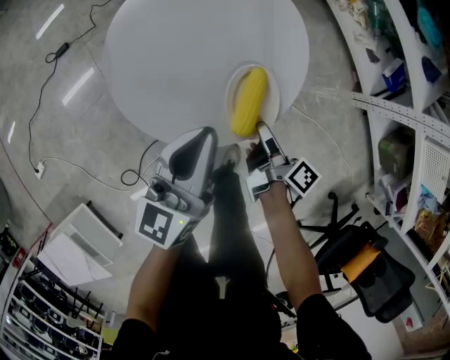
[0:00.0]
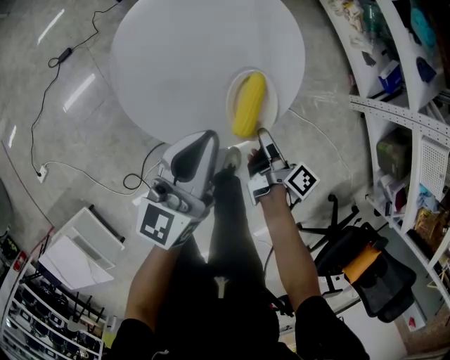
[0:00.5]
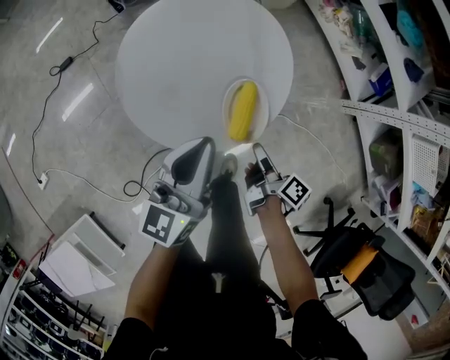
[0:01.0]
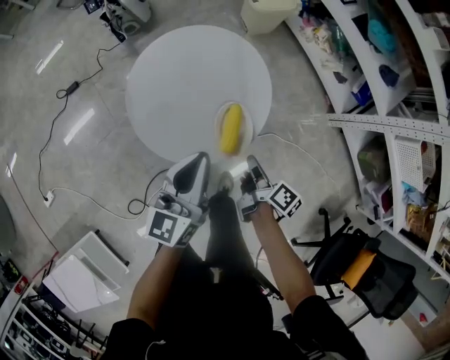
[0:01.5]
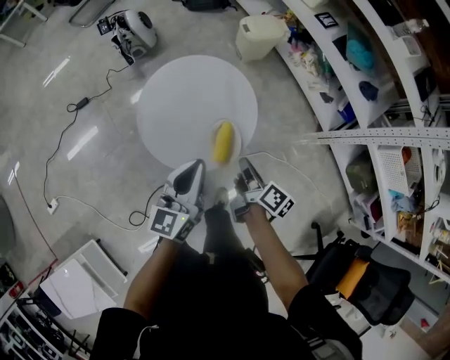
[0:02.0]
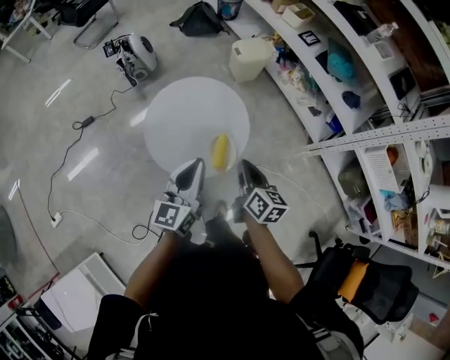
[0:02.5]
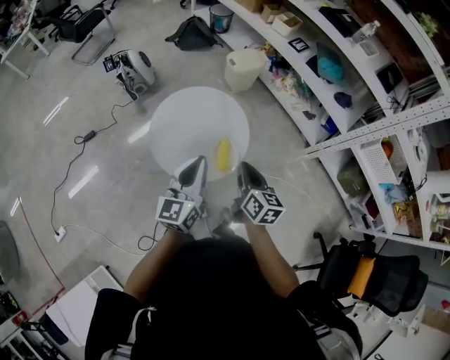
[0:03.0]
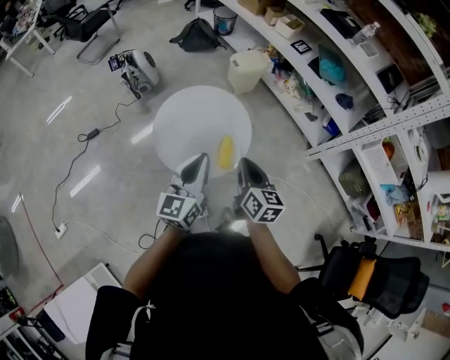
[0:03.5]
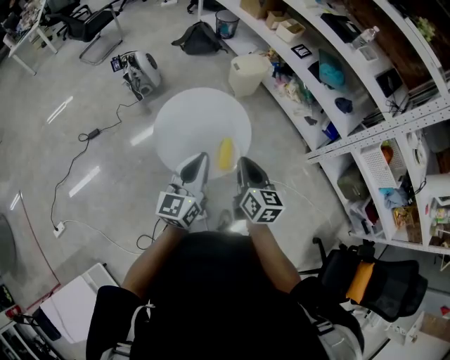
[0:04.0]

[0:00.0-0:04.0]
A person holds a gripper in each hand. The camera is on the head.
0:00.0 to 0:02.0: The left gripper shifts approximately 15 cm upward.
0:02.0 to 0:04.0: The left gripper heads upward, covering approximately 10 cm.

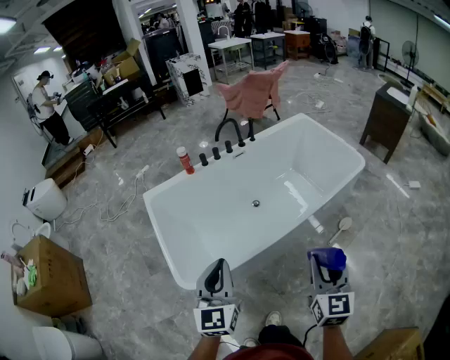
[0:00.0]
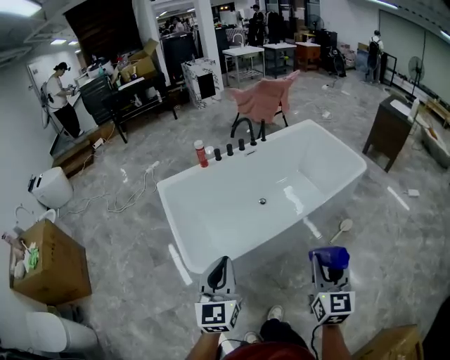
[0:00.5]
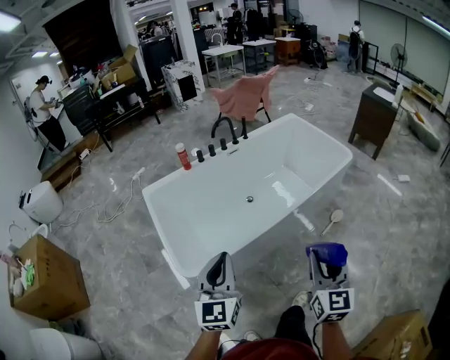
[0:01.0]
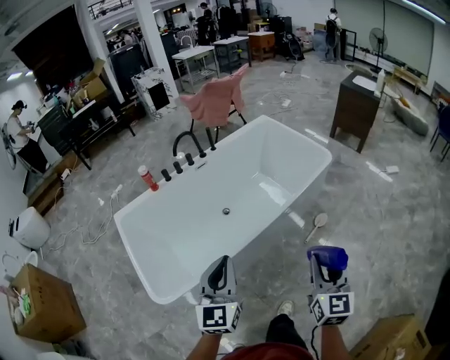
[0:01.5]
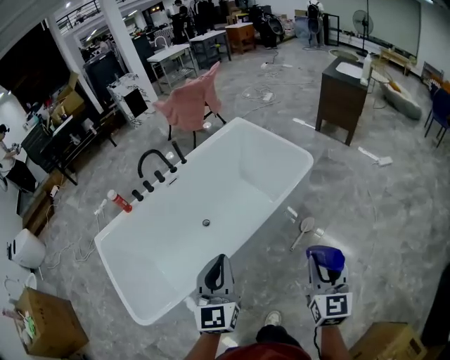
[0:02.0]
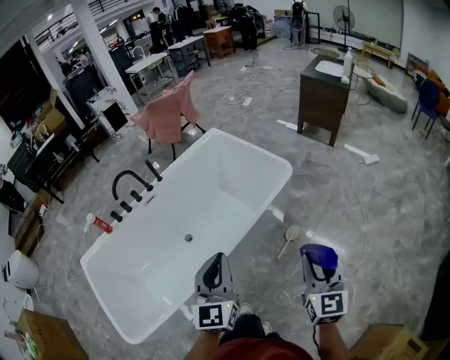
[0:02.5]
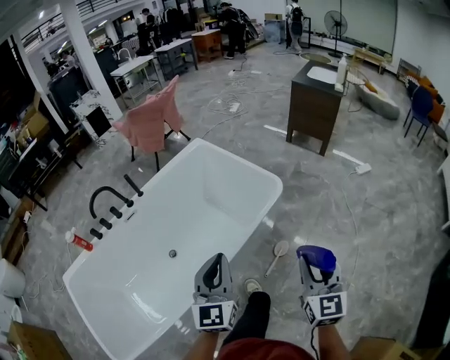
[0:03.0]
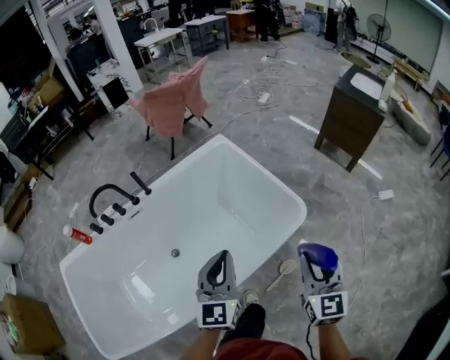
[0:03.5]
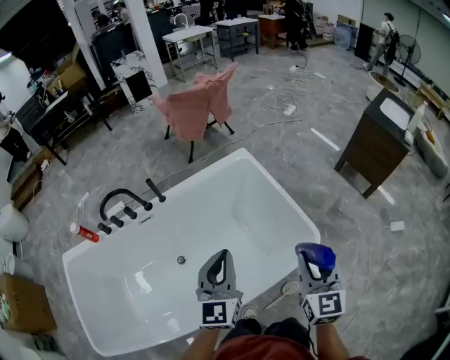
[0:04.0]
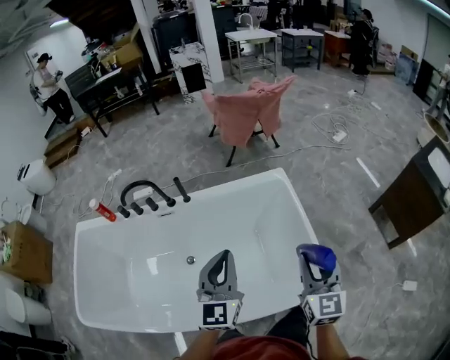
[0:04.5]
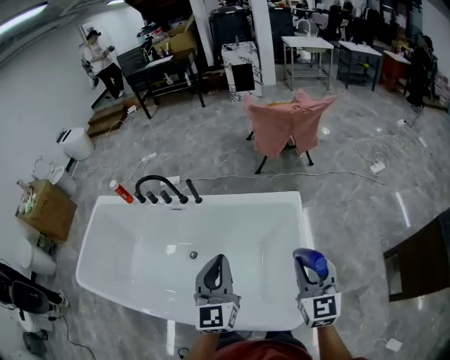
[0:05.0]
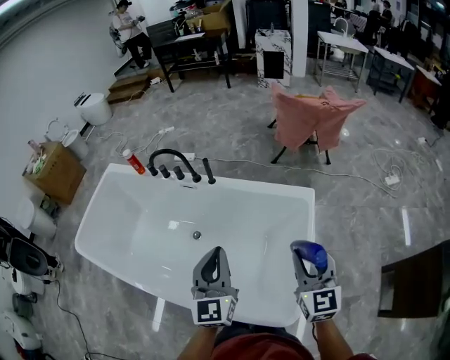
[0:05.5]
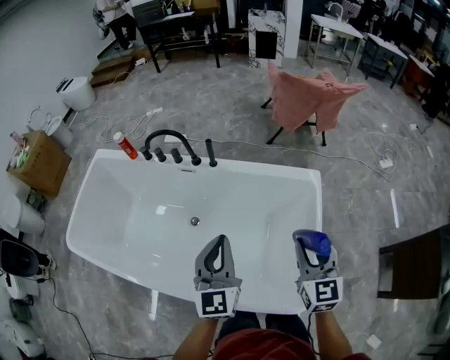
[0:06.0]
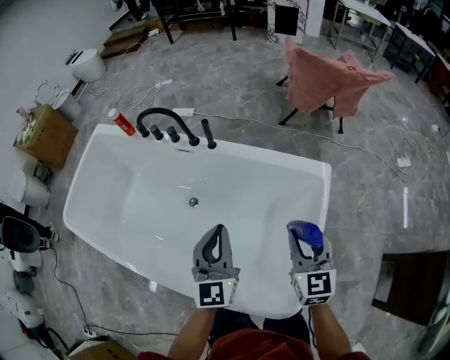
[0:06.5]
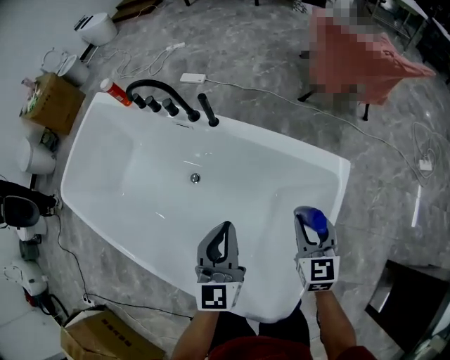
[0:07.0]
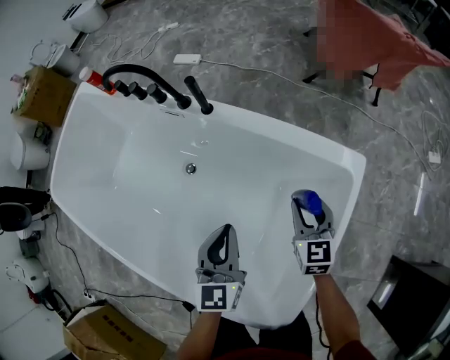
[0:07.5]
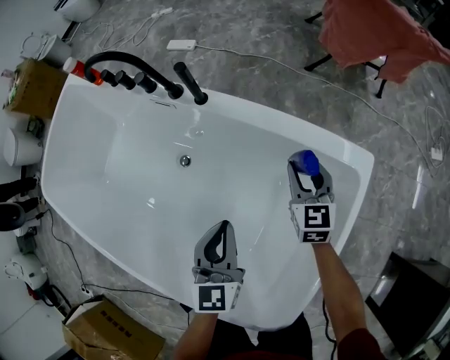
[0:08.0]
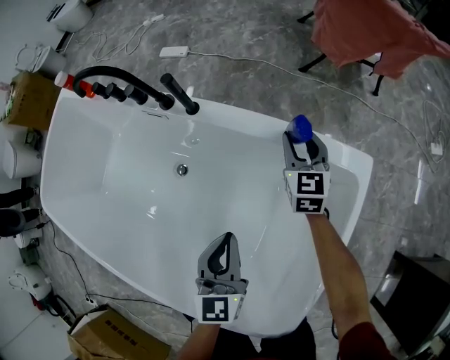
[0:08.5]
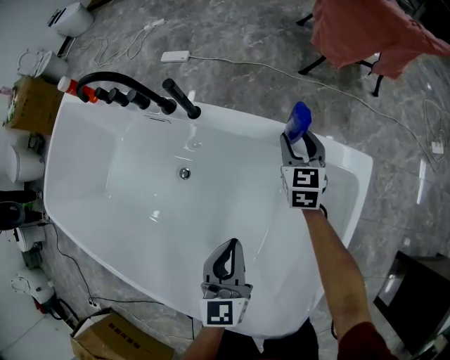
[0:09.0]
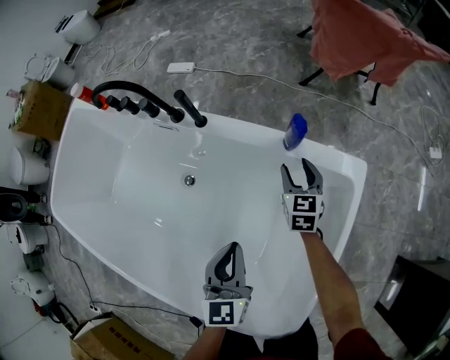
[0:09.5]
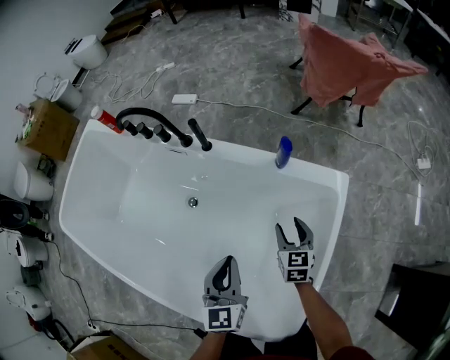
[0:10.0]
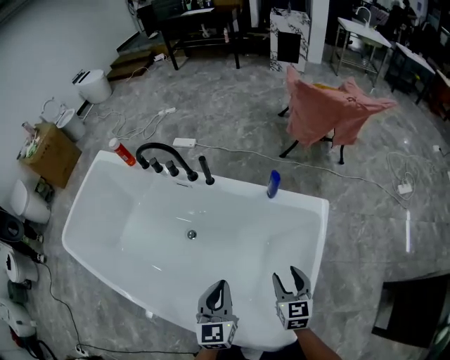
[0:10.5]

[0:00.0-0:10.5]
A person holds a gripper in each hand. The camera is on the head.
0:00.0 to 0:02.0: The left gripper moves to the right and forward, approximately 40 cm. Meanwhile the right gripper shifts about 30 cm to the right.
0:02.0 to 0:04.0: Both grippers are carried forward, some 50 cm.
0:04.0 to 0:06.5: The left gripper changes place by about 20 cm, and swivels about 50 degrees. The right gripper moves approximately 35 cm, and swivels some 50 degrees.
0:06.5 to 0:08.5: The left gripper heads downward and forward, covering about 25 cm; the right gripper goes approximately 40 cm forward and downward.
0:08.5 to 0:10.5: The right gripper heads backward and upward, covering about 40 cm. The left gripper shifts about 20 cm upward and backward.

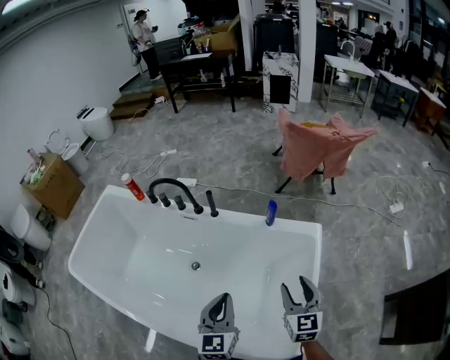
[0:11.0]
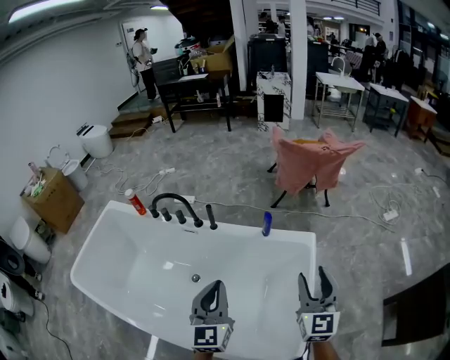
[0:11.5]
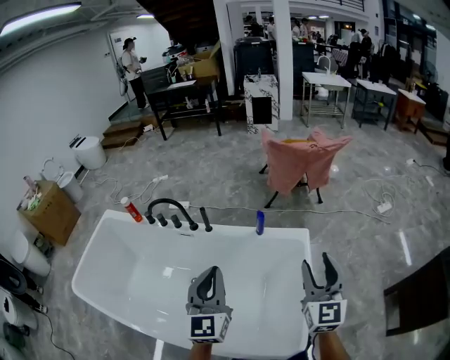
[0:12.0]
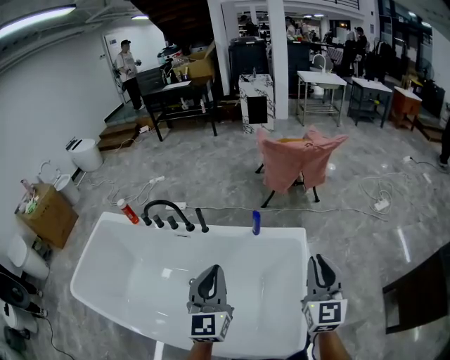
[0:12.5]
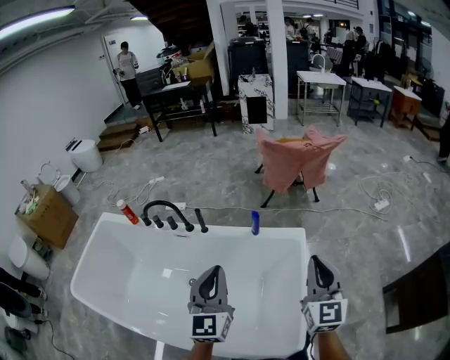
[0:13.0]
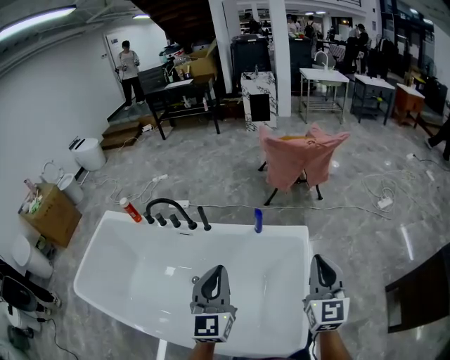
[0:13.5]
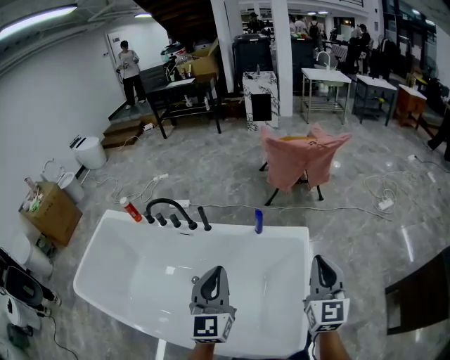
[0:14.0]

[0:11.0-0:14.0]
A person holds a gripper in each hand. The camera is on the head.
0:11.0 to 0:12.5: The right gripper travels upward and to the right by approximately 20 cm, turns by about 20 degrees, and closes up, while the left gripper shifts about 15 cm upward.
0:12.5 to 0:14.0: The two grippers keep their place.

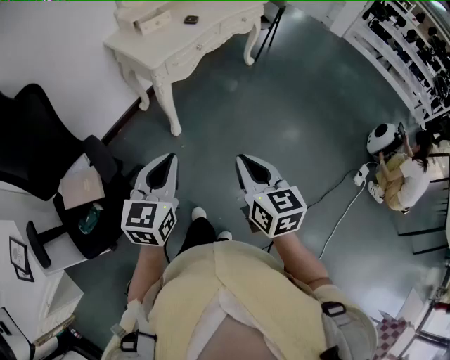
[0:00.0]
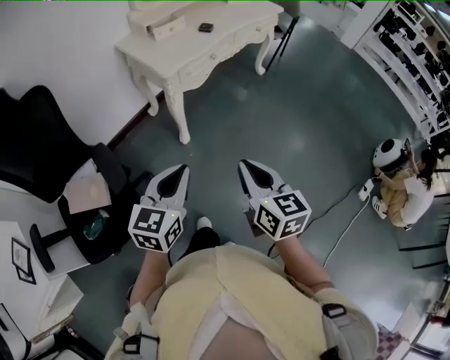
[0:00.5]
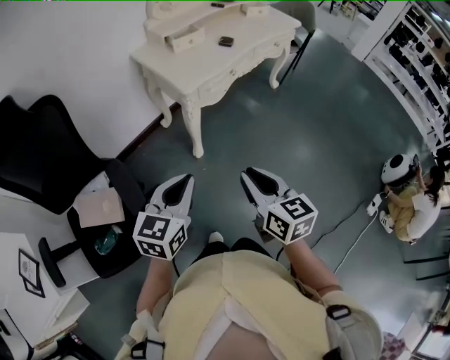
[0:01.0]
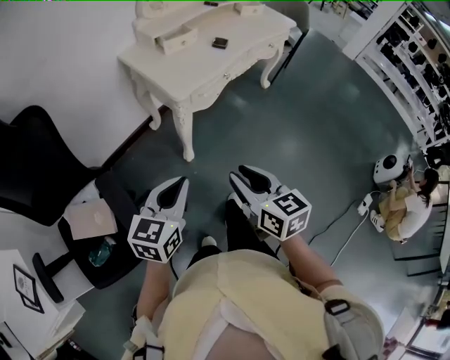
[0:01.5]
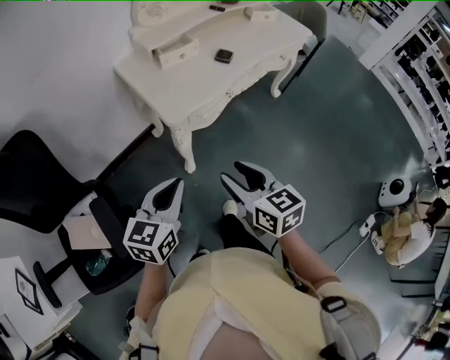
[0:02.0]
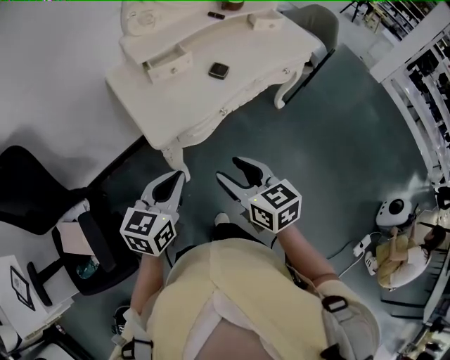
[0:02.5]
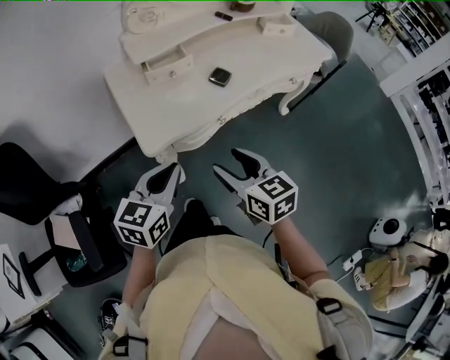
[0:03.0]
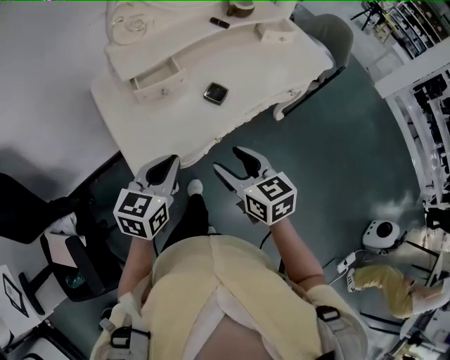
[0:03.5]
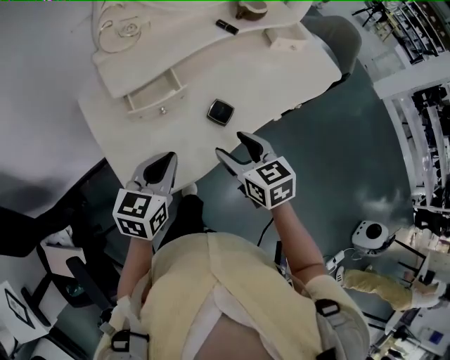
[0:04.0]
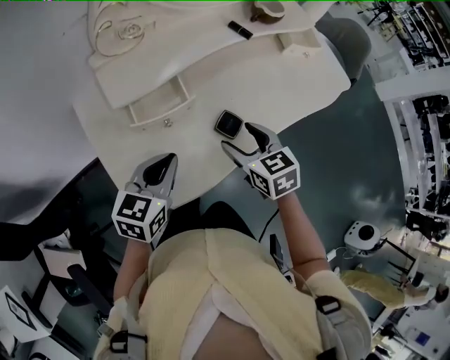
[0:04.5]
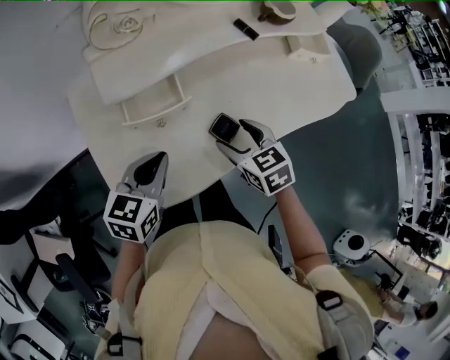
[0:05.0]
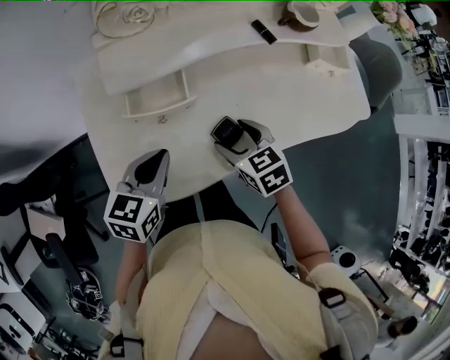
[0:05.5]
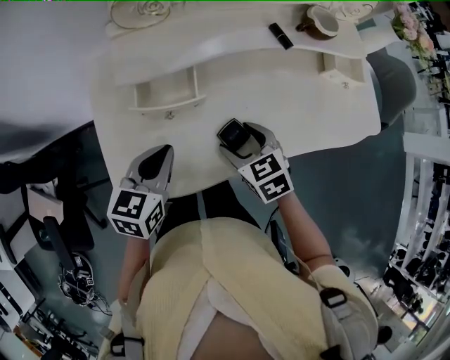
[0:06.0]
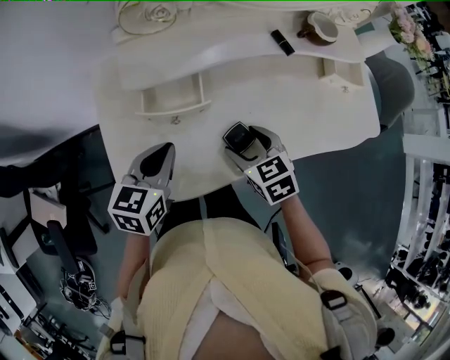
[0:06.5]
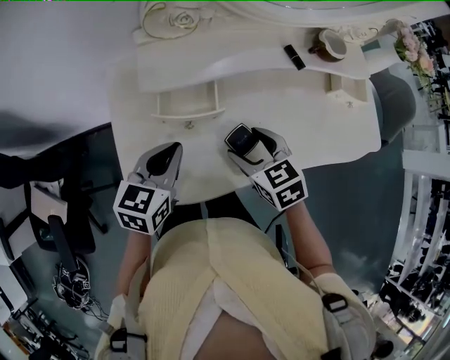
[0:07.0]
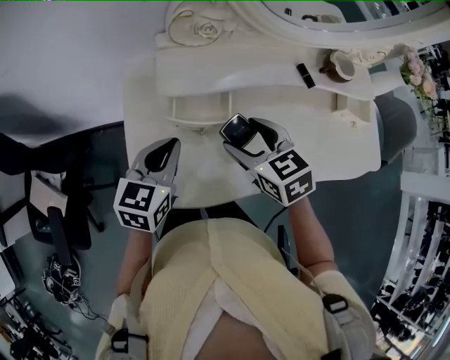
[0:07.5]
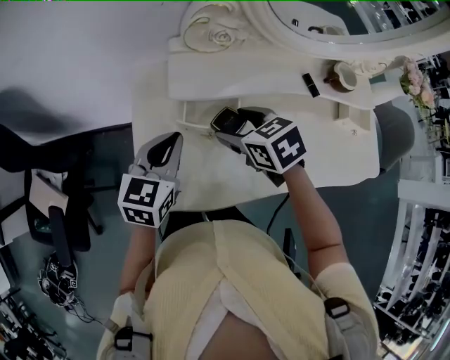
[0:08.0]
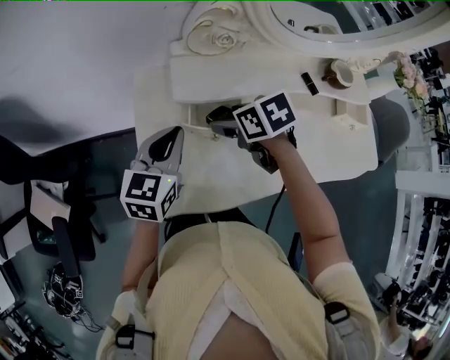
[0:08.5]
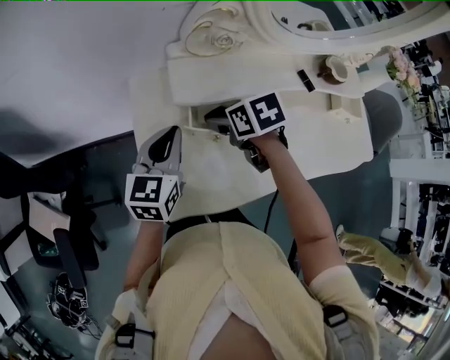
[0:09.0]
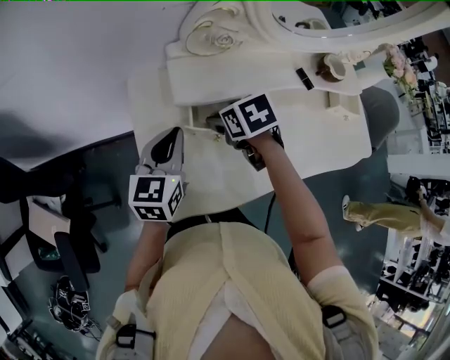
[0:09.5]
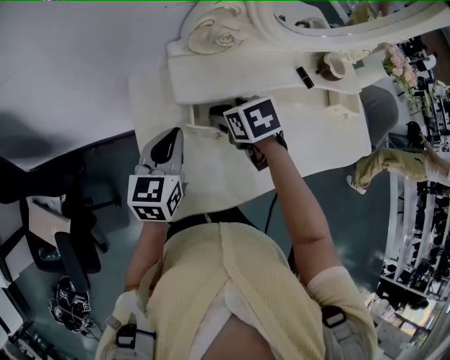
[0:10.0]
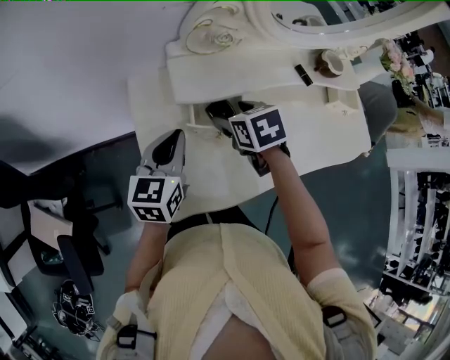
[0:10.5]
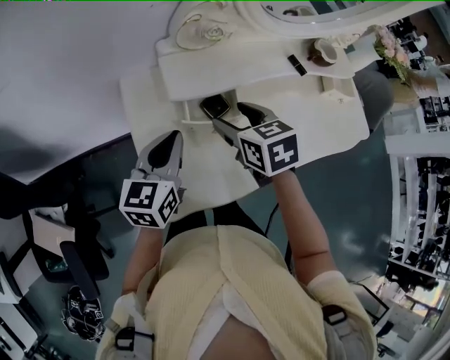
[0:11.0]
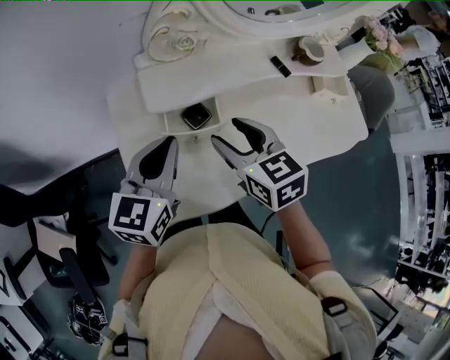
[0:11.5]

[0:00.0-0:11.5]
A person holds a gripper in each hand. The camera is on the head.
0:00.0 to 0:02.0: The grippers both shift forward by some 30 cm. The right gripper turns by about 20 degrees, and opens its fingers.
0:02.0 to 0:04.0: The two grippers go approximately 35 cm forward.
0:04.0 to 0:06.0: The right gripper goes roughly 10 cm forward and downward, and rotates roughly 30 degrees, while the left gripper goes about 5 cm forward, and changes its angle by about 20 degrees.
0:06.0 to 0:07.5: The right gripper travels upward, to the left and forward by approximately 15 cm, while the left gripper travels to the left by approximately 5 cm.
0:07.5 to 0:09.5: The right gripper goes some 10 cm forward and downward, and turns by roughly 30 degrees; the left gripper heads forward, covering roughly 5 cm.
0:09.5 to 0:11.5: The left gripper goes some 5 cm upward. Meanwhile the right gripper shifts approximately 10 cm upward and backward, and tilts its fingers about 30 degrees upward.
